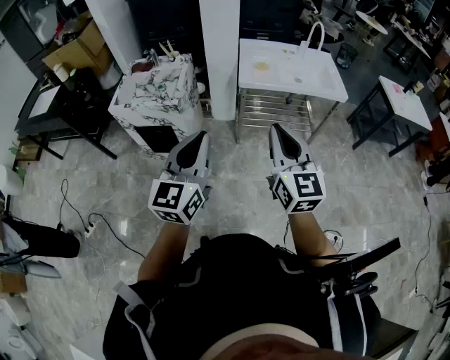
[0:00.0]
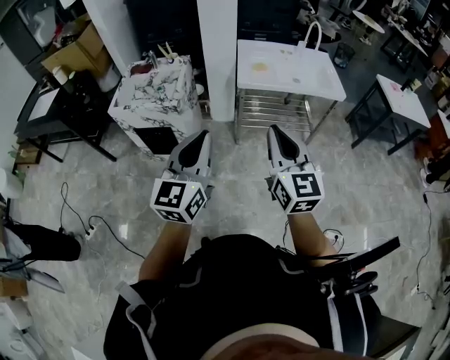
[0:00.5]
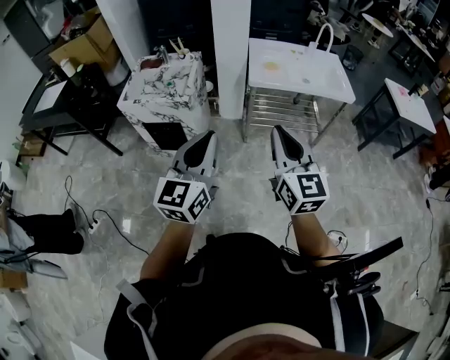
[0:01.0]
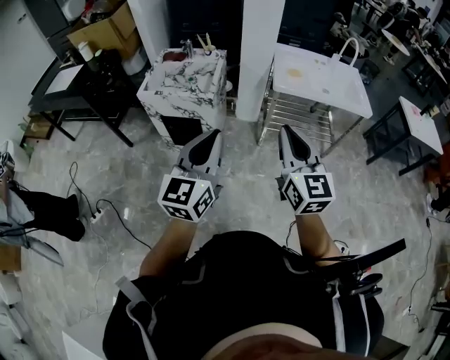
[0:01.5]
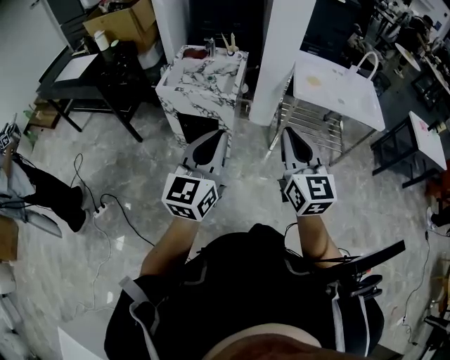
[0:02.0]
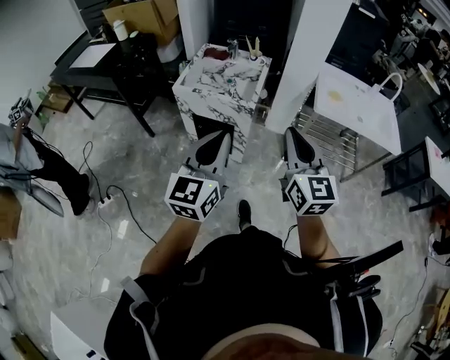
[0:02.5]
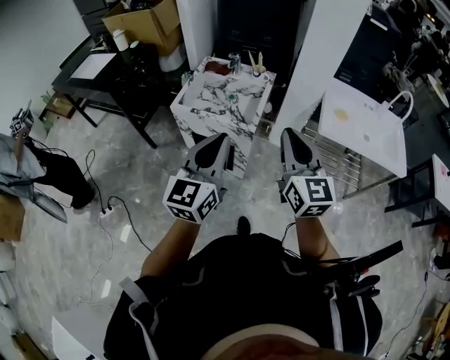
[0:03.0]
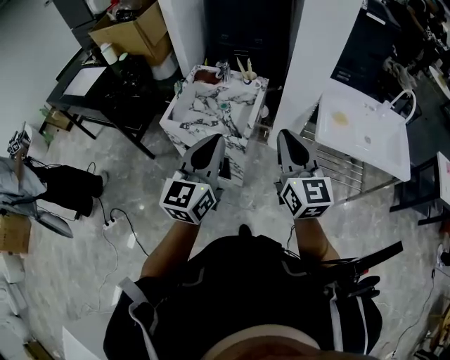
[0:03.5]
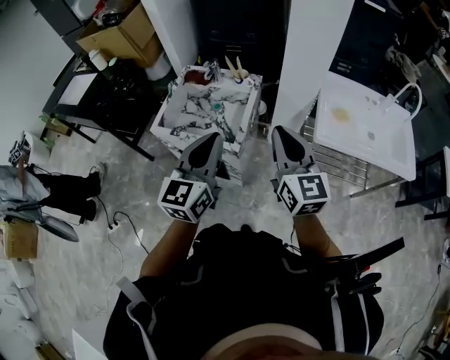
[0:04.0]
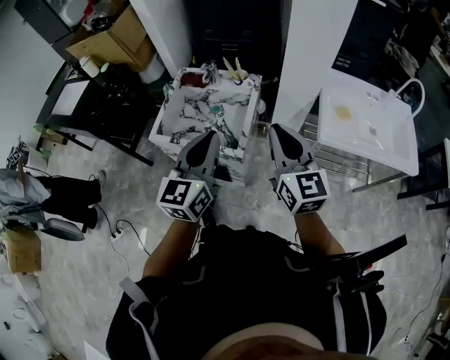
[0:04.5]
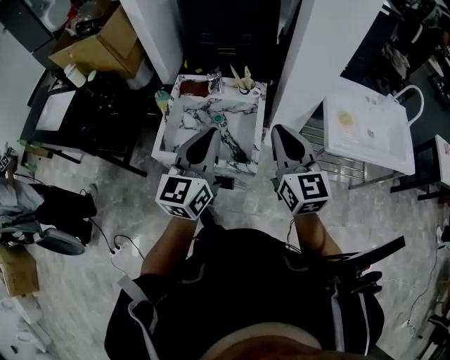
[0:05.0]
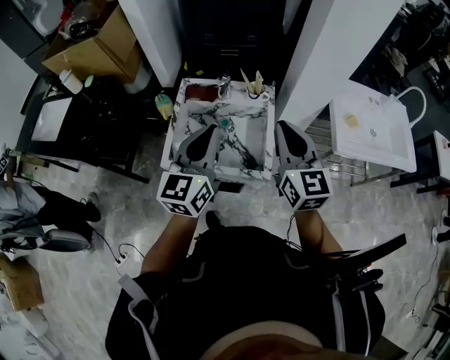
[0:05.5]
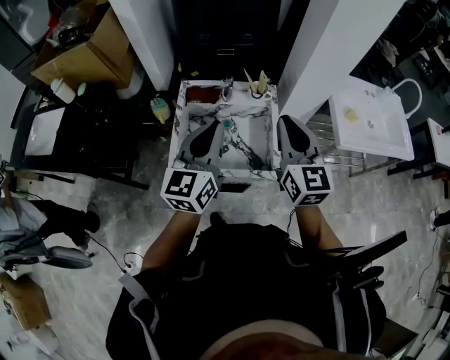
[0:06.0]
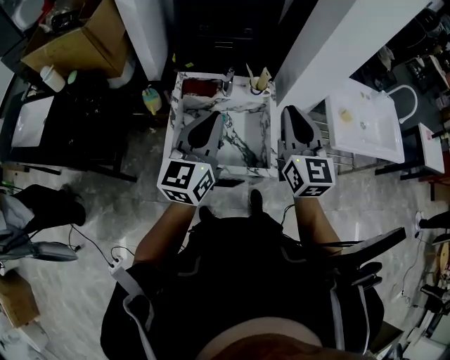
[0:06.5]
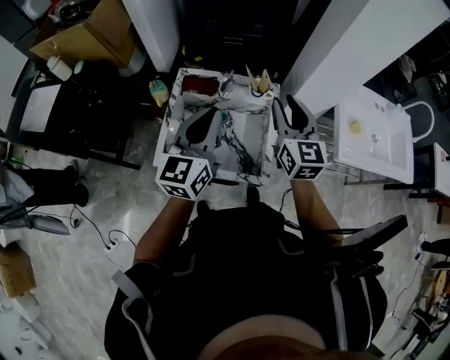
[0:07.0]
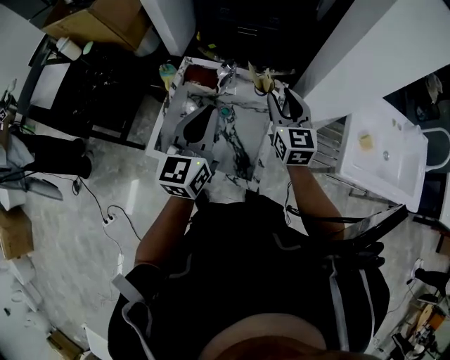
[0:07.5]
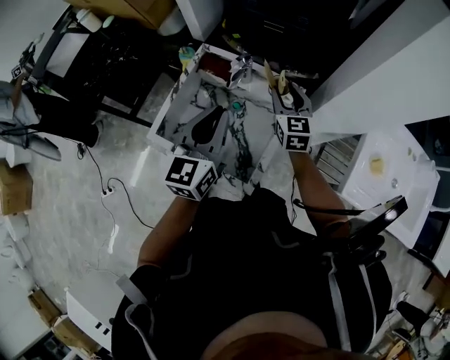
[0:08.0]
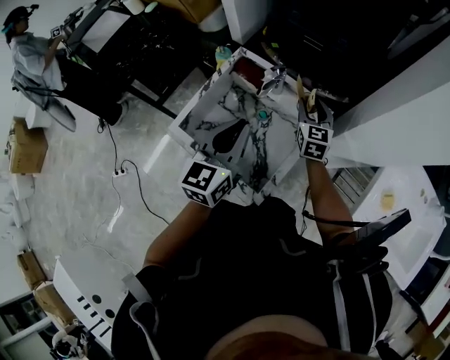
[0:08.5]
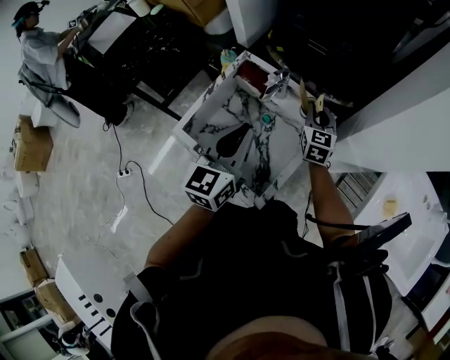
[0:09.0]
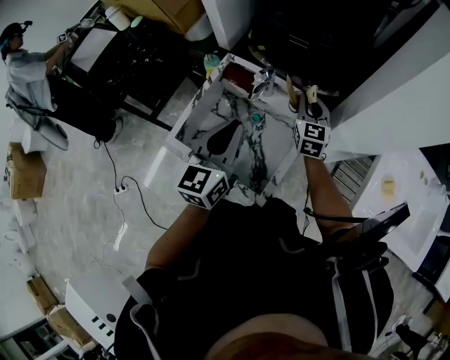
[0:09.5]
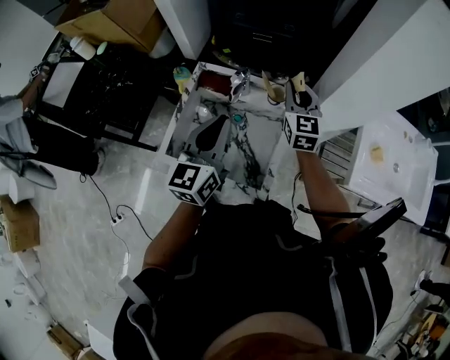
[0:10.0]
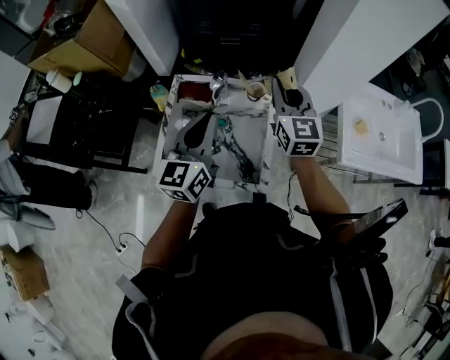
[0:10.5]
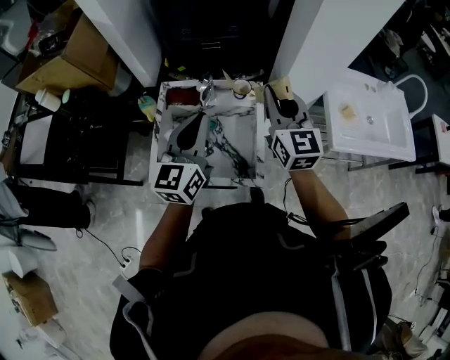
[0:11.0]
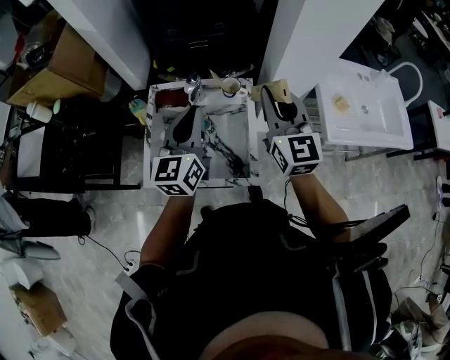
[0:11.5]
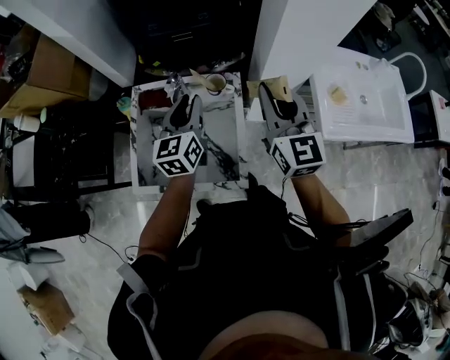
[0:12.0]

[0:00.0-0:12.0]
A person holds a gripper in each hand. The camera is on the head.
0:00.0 to 0:02.0: Both grippers move to the left, roughly 20 cm.
0:02.0 to 0:04.0: Both grippers move forward, roughly 30 cm.
0:04.0 to 0:06.0: Both grippers move to the left and forward, approximately 25 cm.
0:06.0 to 0:08.0: The left gripper goes some 15 cm forward, downward and to the right, and changes its angle by approximately 20 degrees; the right gripper moves forward and downward, about 35 cm, turns by about 30 degrees, and opens up.
0:08.0 to 0:10.0: The right gripper moves upward, about 10 cm, and closes.
0:10.0 to 0:12.0: The right gripper travels backward, upward and to the right by some 15 cm. Meanwhile the left gripper moves forward, downward and to the right, about 10 cm.

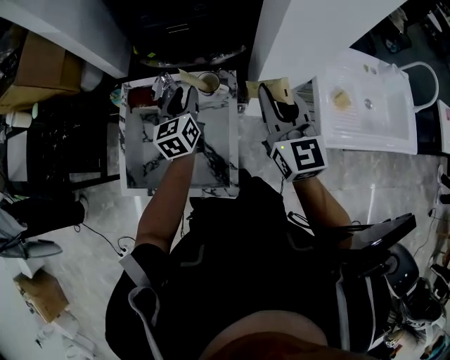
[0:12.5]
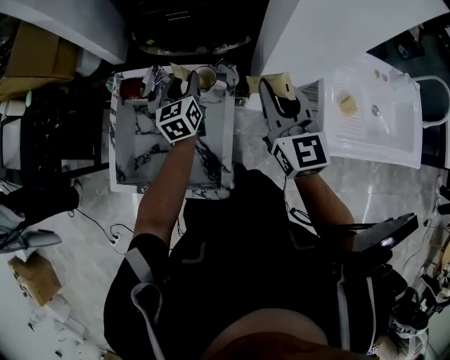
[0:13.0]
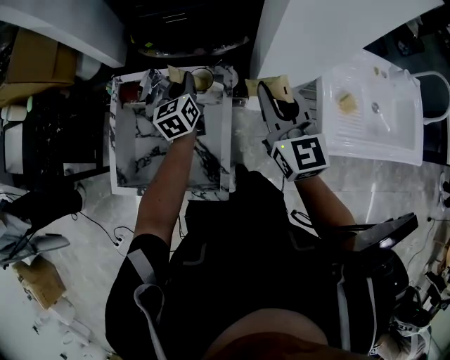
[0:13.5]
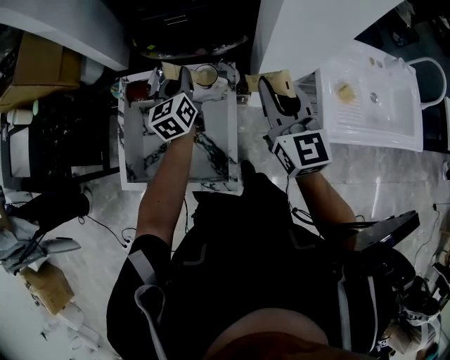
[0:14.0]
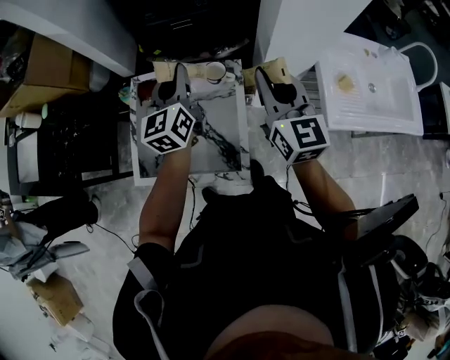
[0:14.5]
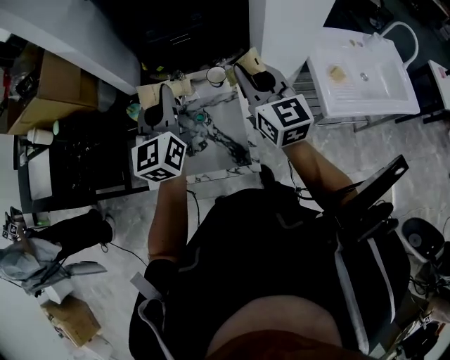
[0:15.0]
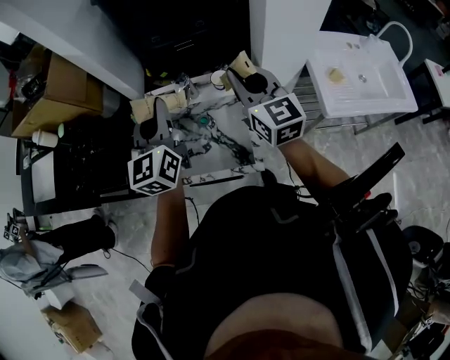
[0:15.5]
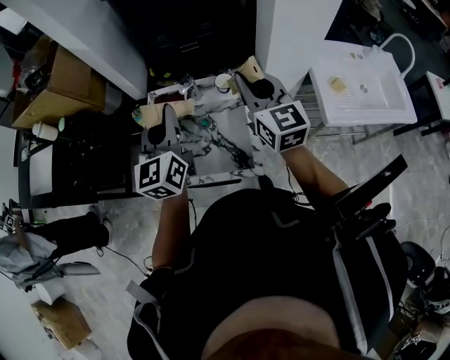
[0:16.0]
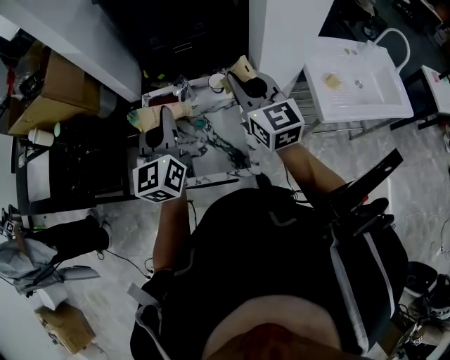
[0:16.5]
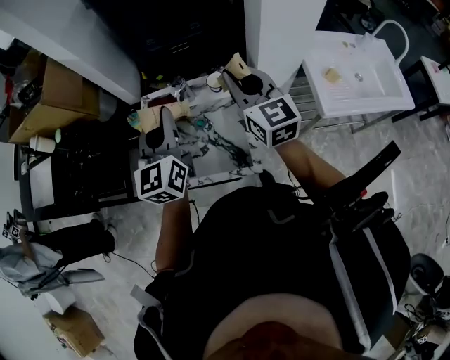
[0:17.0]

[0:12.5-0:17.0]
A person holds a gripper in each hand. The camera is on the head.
0:12.5 to 0:14.5: The left gripper heads upward, covering roughly 10 cm, and closes.
0:14.5 to 0:17.0: The left gripper heads backward, upward and to the left, covering roughly 15 cm. The right gripper is displaced to the left by approximately 10 cm.

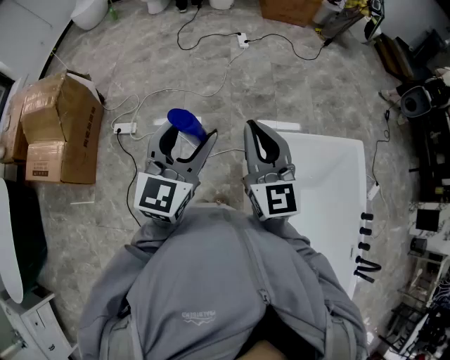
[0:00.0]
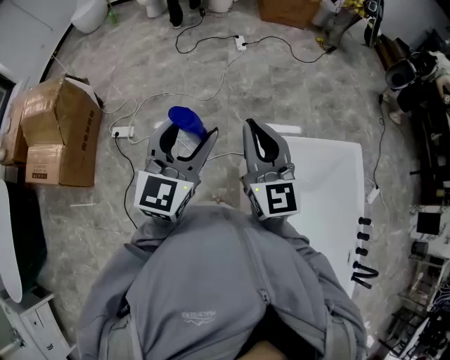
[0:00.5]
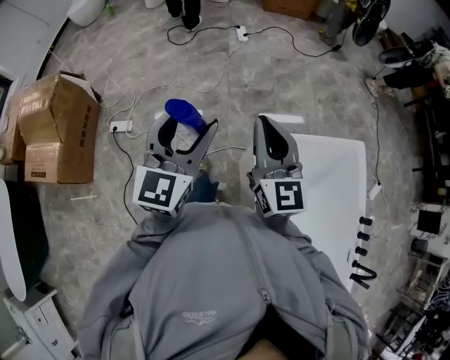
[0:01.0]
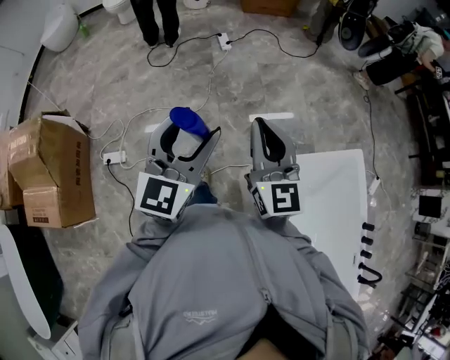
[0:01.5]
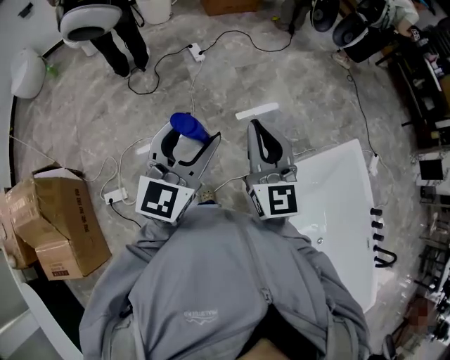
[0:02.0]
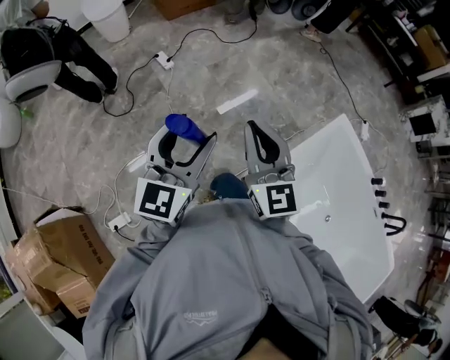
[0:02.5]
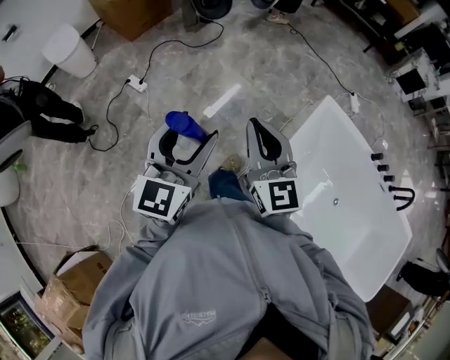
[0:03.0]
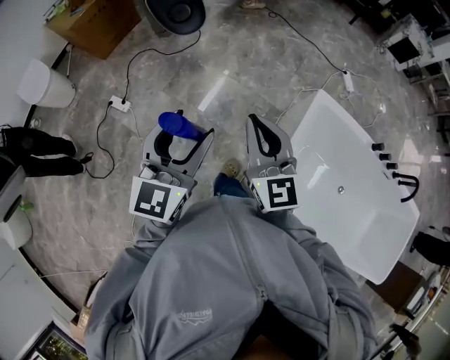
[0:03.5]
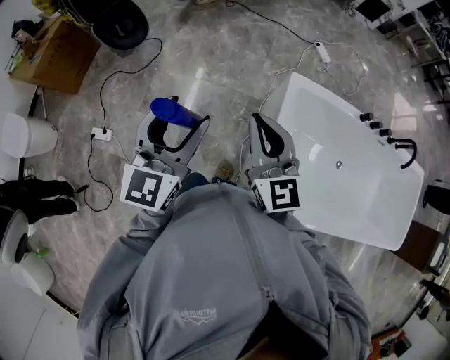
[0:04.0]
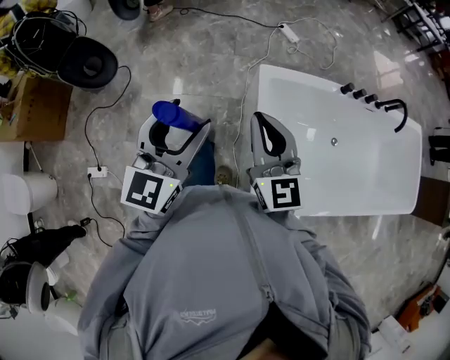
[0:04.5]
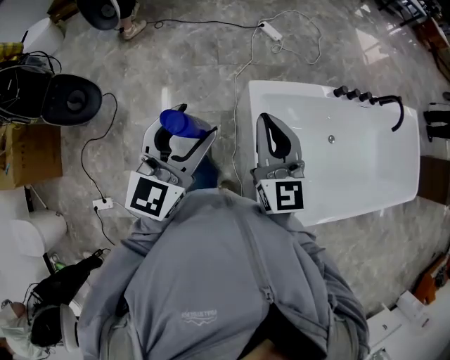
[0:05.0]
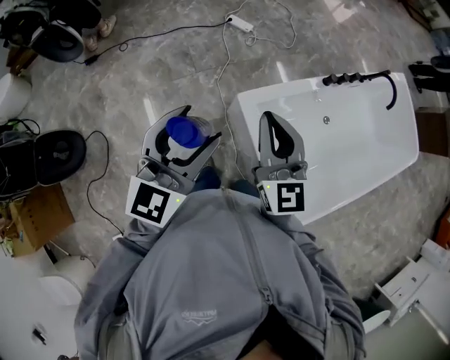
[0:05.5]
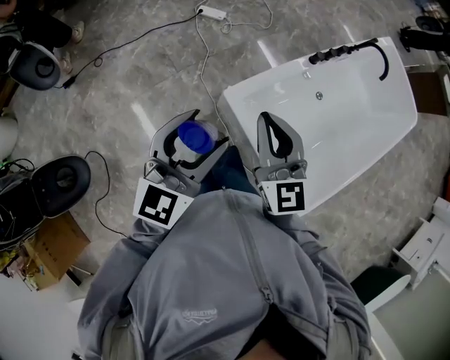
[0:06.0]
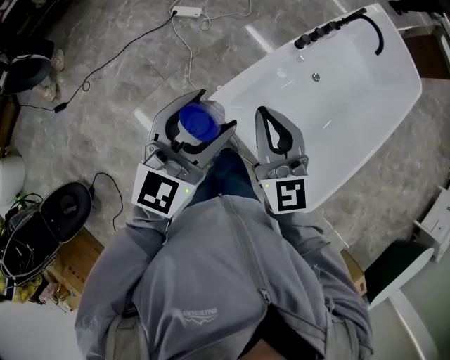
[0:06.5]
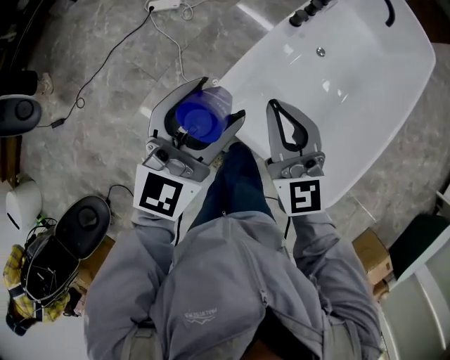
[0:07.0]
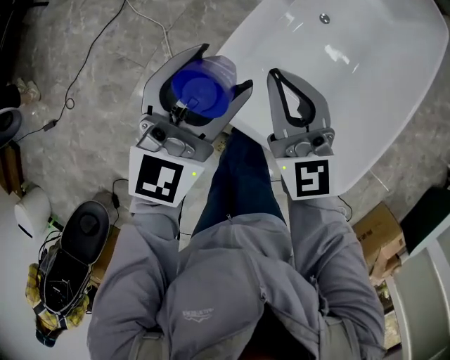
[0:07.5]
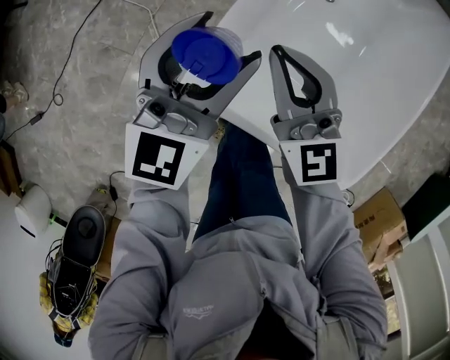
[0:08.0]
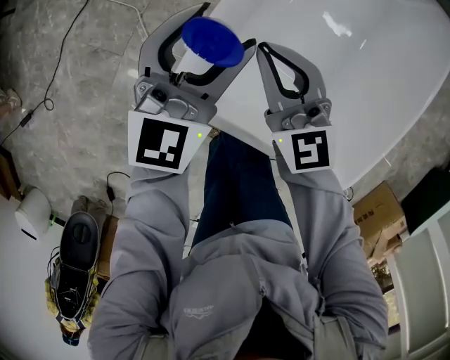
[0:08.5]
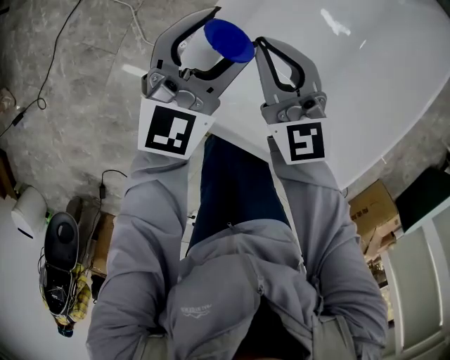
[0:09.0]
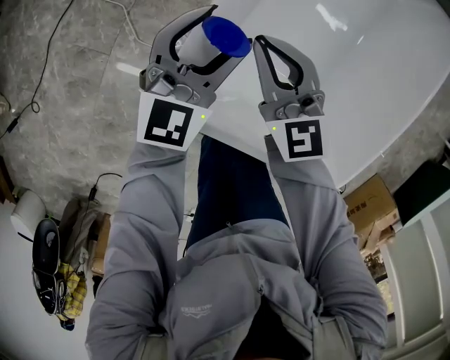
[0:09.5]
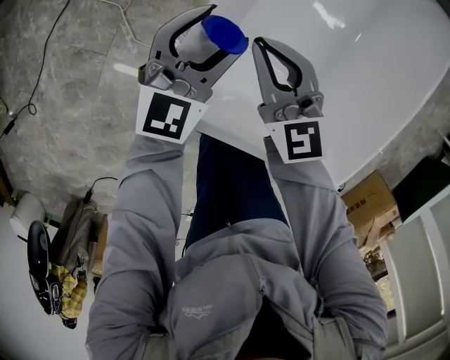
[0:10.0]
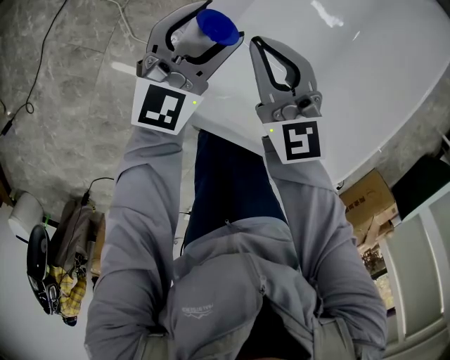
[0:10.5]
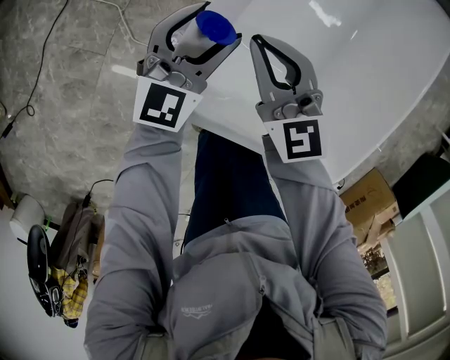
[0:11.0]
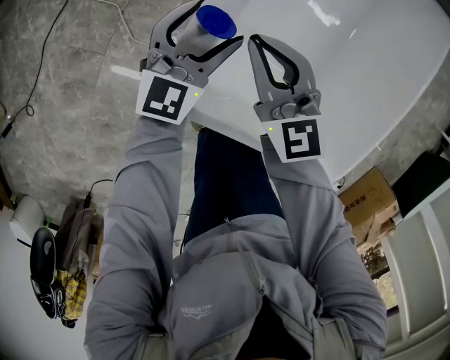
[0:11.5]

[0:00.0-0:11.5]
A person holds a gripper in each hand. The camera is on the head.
0:00.0 to 0:02.0: Both grippers travel together forward, some 35 cm. The right gripper changes its angle by approximately 20 degrees. Meanwhile the left gripper rotates about 20 degrees.
0:02.0 to 0:04.0: The left gripper changes place by approximately 40 cm, and rotates approximately 50 degrees; the right gripper shifts by about 40 cm, and swivels roughly 50 degrees.
0:04.0 to 0:06.0: The right gripper moves approximately 35 cm, and turns by some 50 degrees; the left gripper shifts by about 40 cm, and turns by some 60 degrees.
0:06.0 to 0:07.5: The left gripper moves forward, downward and to the right, some 30 cm, and swivels about 20 degrees, while the right gripper shifts roughly 25 cm downward, forward and to the right.
0:07.5 to 0:09.5: Both grippers travel together downward and forward, roughly 25 cm.
0:09.5 to 0:11.5: The grippers move only a little.
